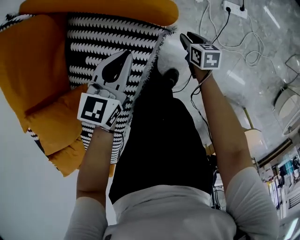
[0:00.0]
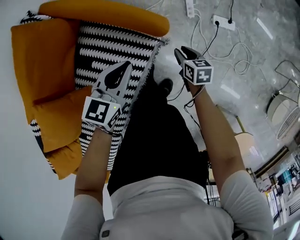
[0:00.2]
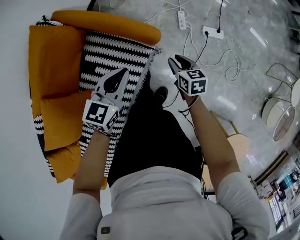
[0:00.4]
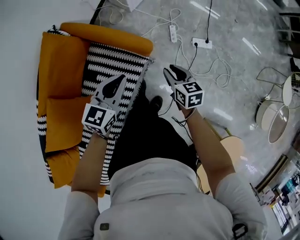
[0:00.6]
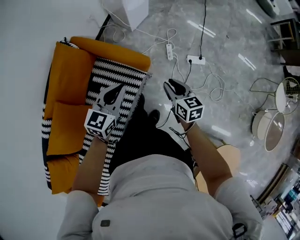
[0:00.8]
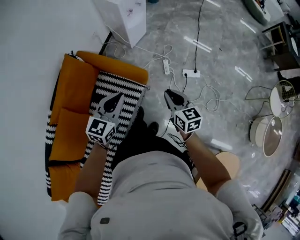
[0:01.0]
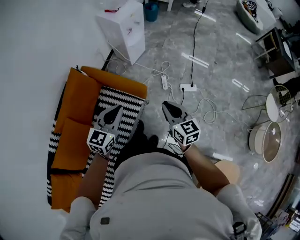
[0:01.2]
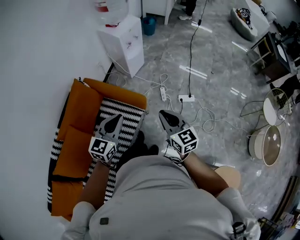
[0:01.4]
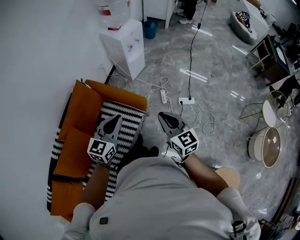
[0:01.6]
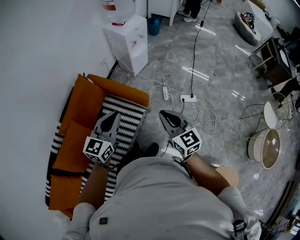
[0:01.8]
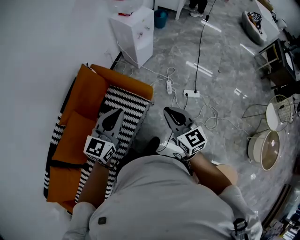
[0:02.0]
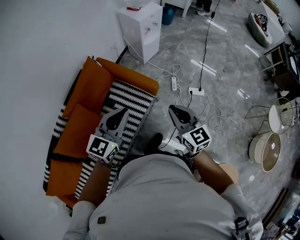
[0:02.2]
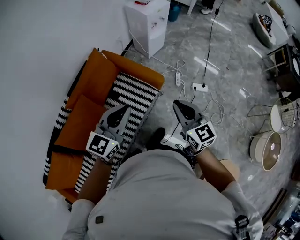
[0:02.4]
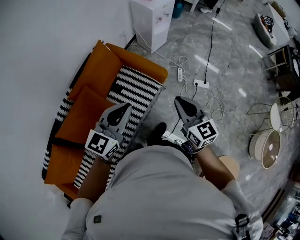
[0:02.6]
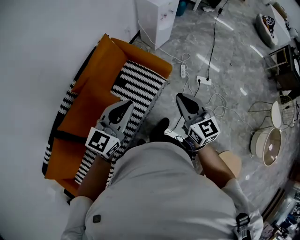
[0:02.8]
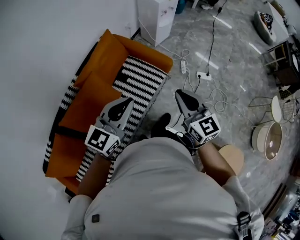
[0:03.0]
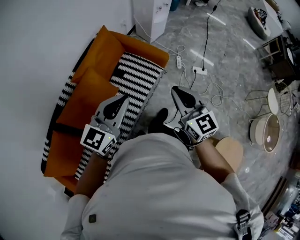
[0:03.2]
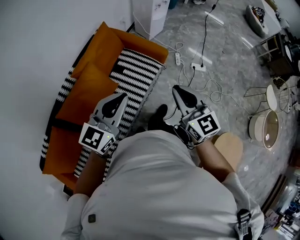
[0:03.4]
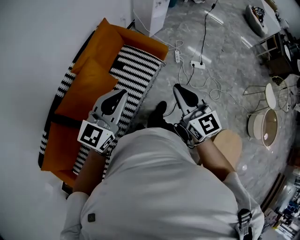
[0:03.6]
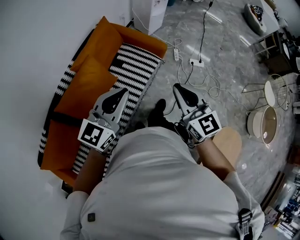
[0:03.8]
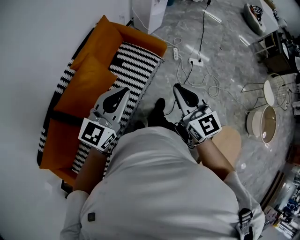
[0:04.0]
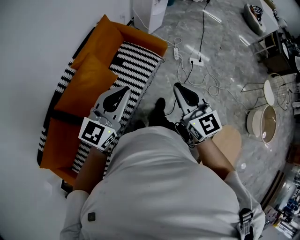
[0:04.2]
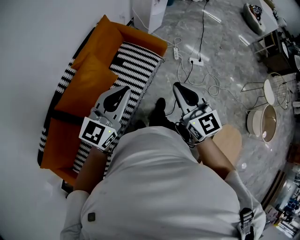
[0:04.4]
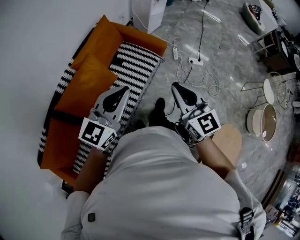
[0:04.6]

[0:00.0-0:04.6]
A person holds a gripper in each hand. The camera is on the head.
0:00.0 to 0:01.6: The grippers both shift upward by some 60 cm. The left gripper turns by some 30 degrees. Meanwhile the right gripper tilts its fingers some 40 degrees upward, and closes its fingers.
0:01.6 to 0:03.0: The grippers both shift backward and to the left by roughly 25 cm.
0:03.0 to 0:04.6: Both grippers travel together backward, about 15 cm.

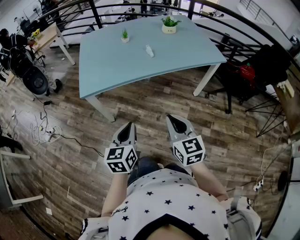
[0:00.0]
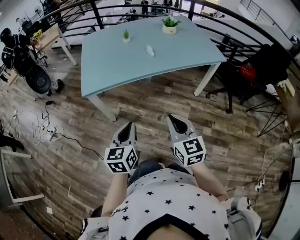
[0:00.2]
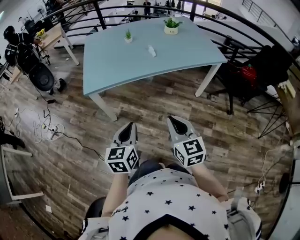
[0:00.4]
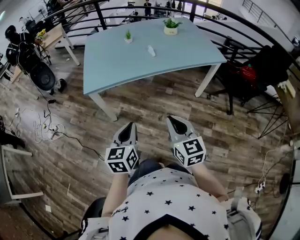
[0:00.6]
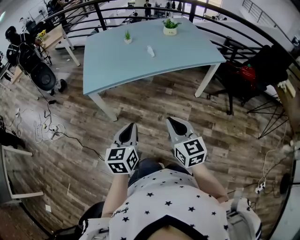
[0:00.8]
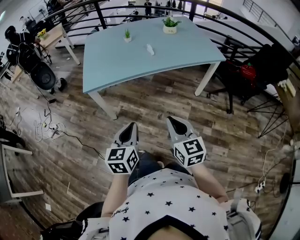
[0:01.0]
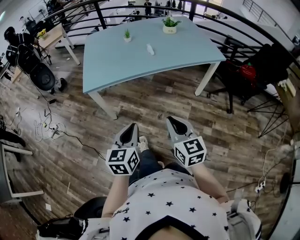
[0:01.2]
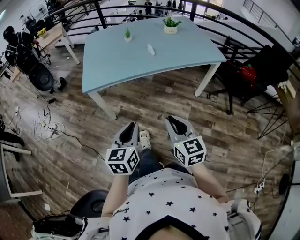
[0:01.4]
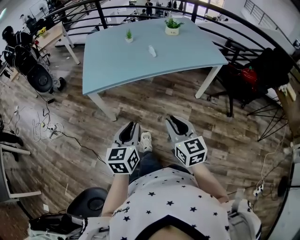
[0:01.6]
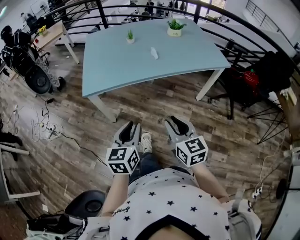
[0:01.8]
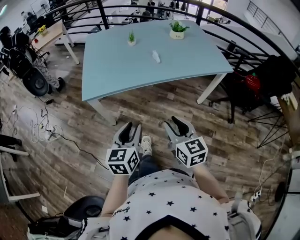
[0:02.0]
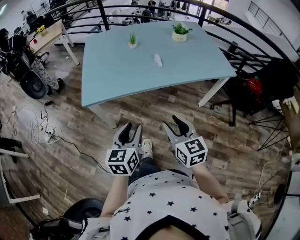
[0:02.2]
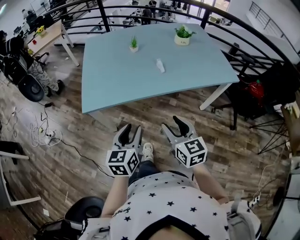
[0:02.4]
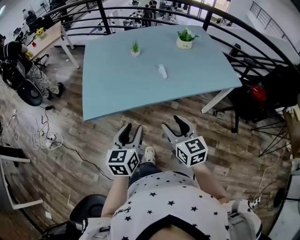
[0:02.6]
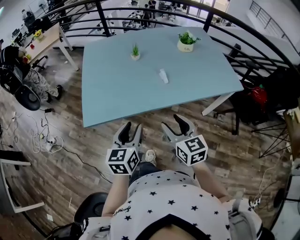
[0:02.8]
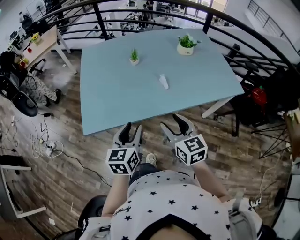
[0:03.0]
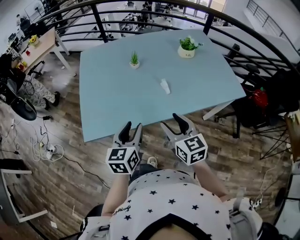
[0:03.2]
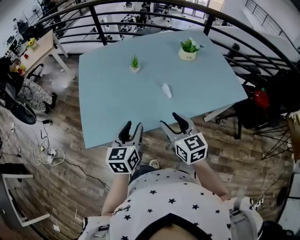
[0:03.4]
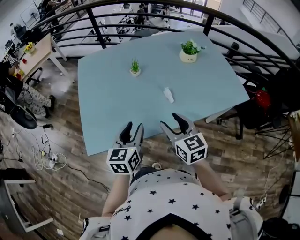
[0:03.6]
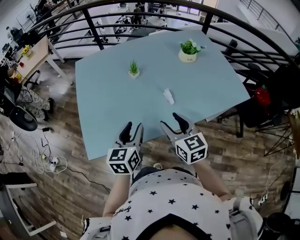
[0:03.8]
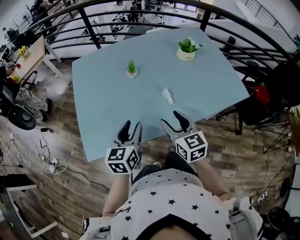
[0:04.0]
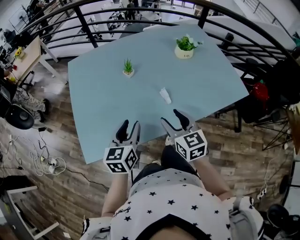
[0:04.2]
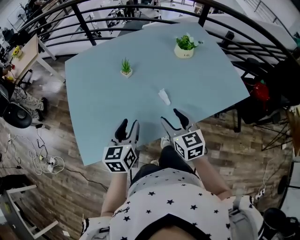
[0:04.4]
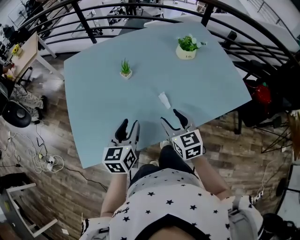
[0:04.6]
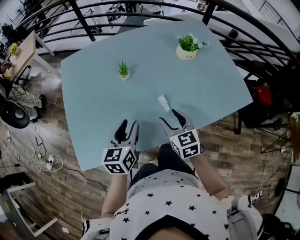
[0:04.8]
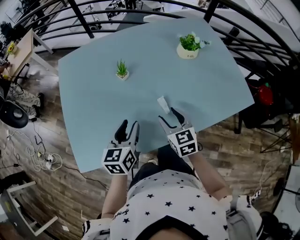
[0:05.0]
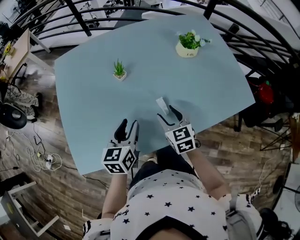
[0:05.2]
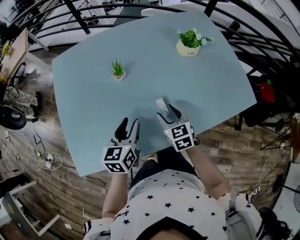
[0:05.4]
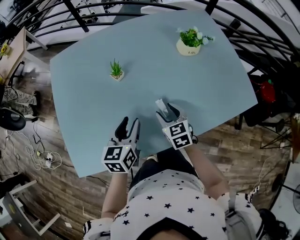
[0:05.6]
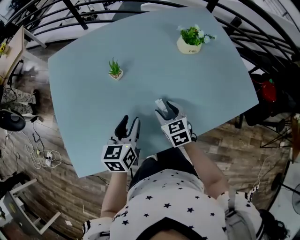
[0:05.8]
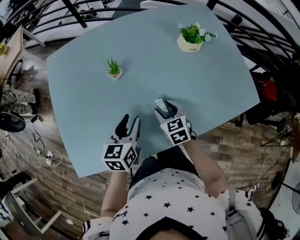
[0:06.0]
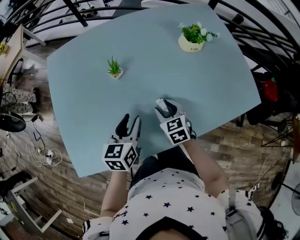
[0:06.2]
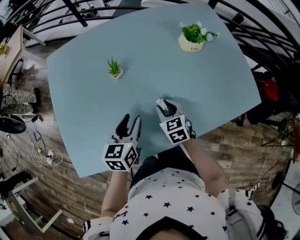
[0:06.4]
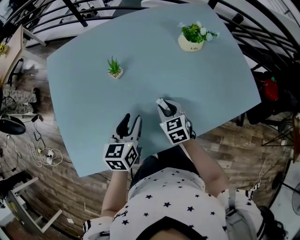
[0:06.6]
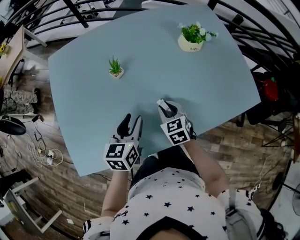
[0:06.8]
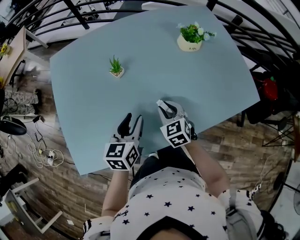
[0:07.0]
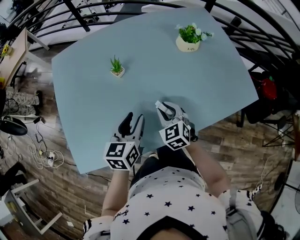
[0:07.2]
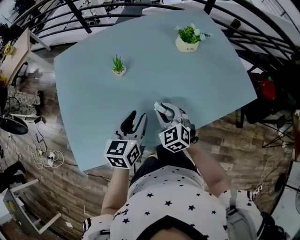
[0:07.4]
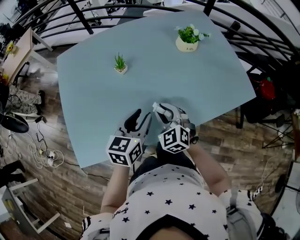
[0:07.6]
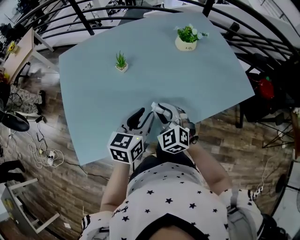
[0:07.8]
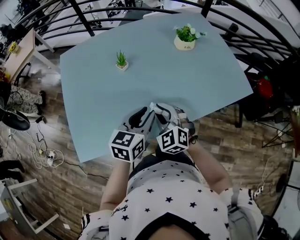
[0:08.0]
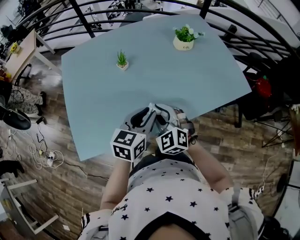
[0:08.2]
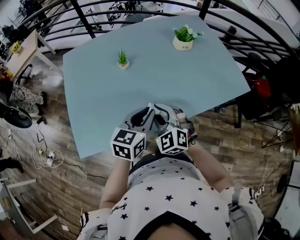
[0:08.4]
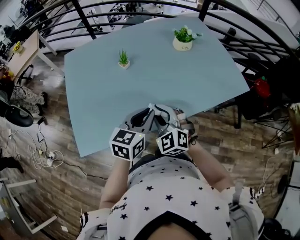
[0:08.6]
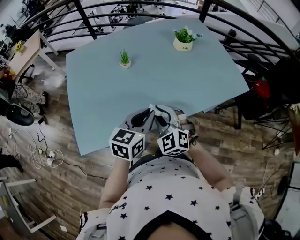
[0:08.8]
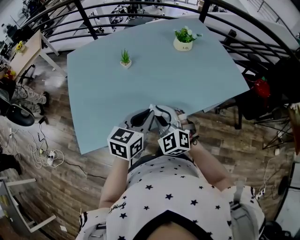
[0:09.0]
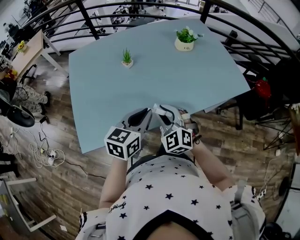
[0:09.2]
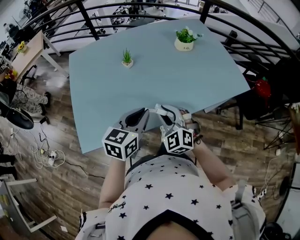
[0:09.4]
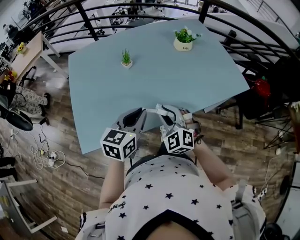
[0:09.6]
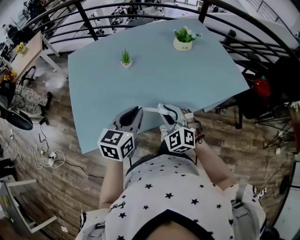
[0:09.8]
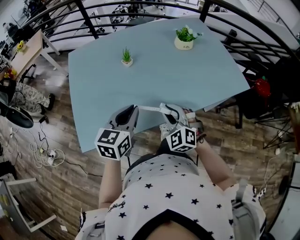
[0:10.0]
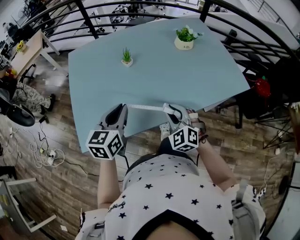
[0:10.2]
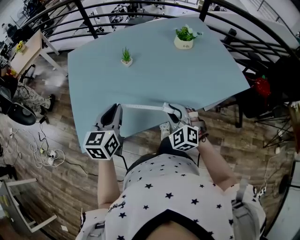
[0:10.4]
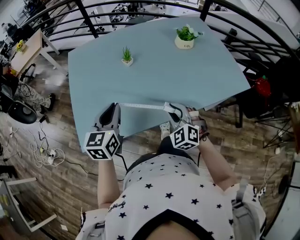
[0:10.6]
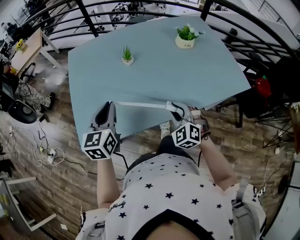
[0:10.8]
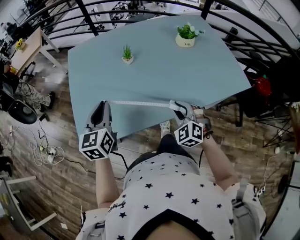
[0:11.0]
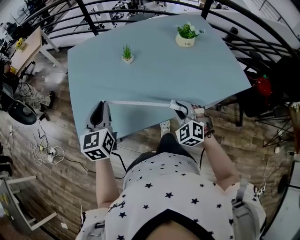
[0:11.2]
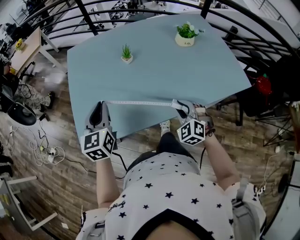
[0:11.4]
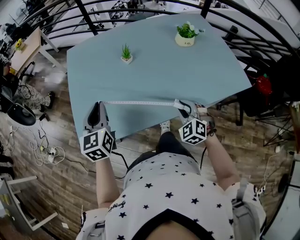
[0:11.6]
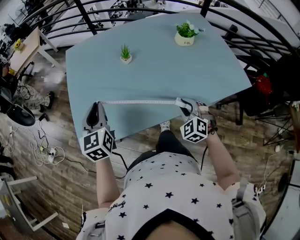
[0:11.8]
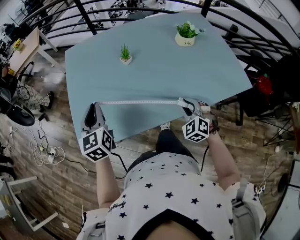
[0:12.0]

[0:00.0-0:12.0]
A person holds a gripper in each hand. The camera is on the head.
0:01.6 to 0:03.0: The two grippers go about 30 cm forward. The right gripper opens its fingers.
0:03.0 to 0:04.4: The grippers both shift forward by roughly 15 cm.
0:04.4 to 0:06.0: The right gripper heads downward and forward, covering approximately 20 cm. The left gripper travels forward and downward by approximately 15 cm.
0:06.0 to 0:07.6: The right gripper is displaced backward and upward by some 10 cm, swivels some 30 degrees, and closes its fingers. Meanwhile the left gripper travels upward and backward by about 5 cm.
0:07.6 to 0:09.0: The left gripper moves backward, about 10 cm, and closes up, while the right gripper goes about 10 cm backward and upward.
0:09.0 to 0:10.4: The right gripper moves approximately 5 cm, while the left gripper moves to the left, some 15 cm, and rotates about 20 degrees.
0:10.4 to 0:12.0: The left gripper moves to the left, roughly 10 cm, and swivels about 30 degrees, while the right gripper shifts approximately 10 cm to the right.

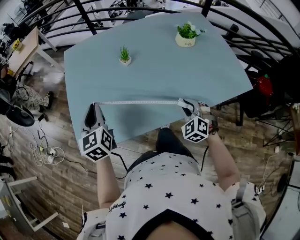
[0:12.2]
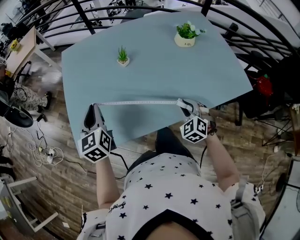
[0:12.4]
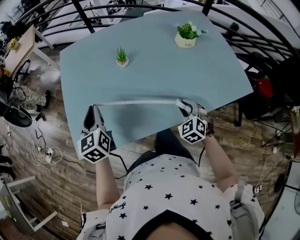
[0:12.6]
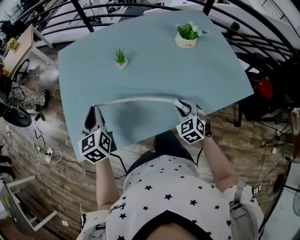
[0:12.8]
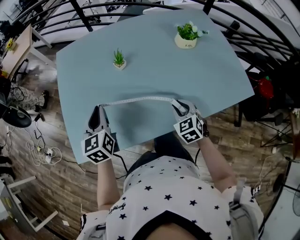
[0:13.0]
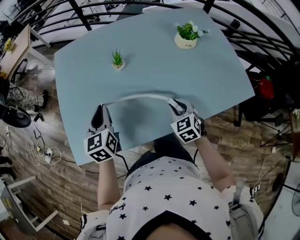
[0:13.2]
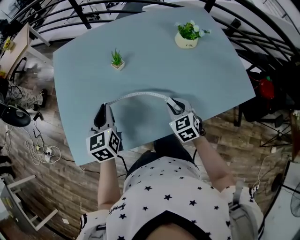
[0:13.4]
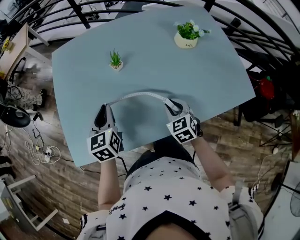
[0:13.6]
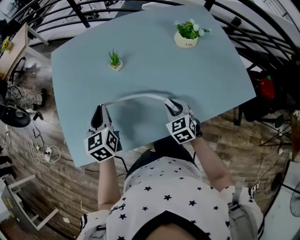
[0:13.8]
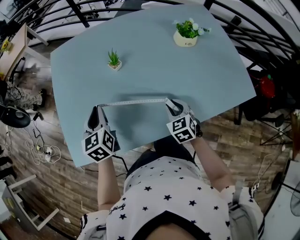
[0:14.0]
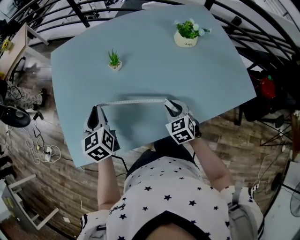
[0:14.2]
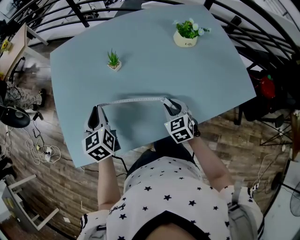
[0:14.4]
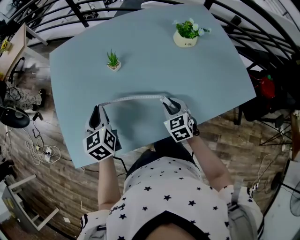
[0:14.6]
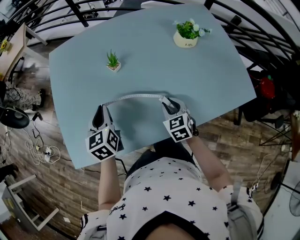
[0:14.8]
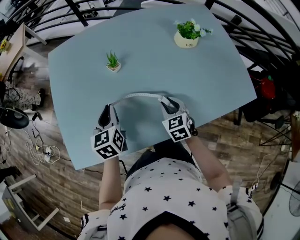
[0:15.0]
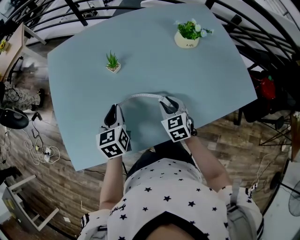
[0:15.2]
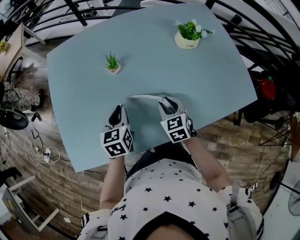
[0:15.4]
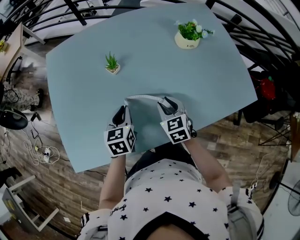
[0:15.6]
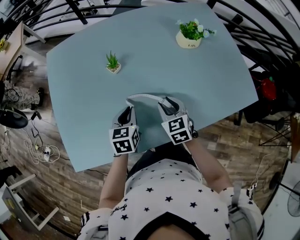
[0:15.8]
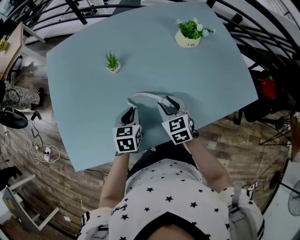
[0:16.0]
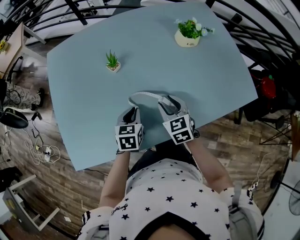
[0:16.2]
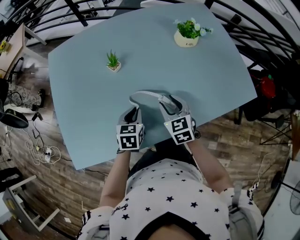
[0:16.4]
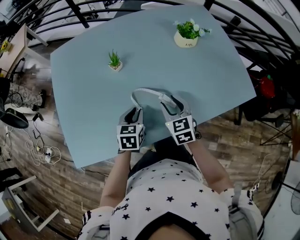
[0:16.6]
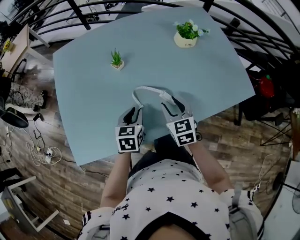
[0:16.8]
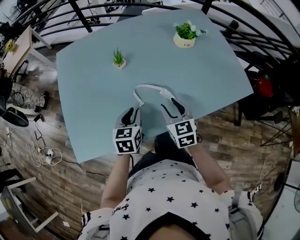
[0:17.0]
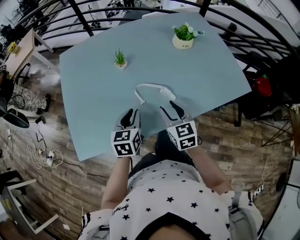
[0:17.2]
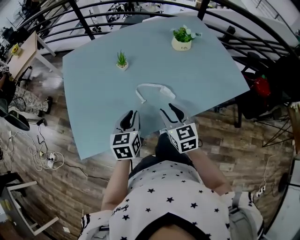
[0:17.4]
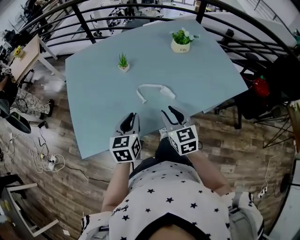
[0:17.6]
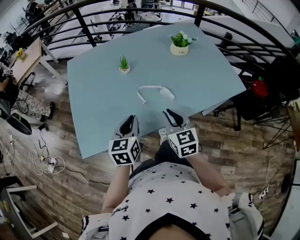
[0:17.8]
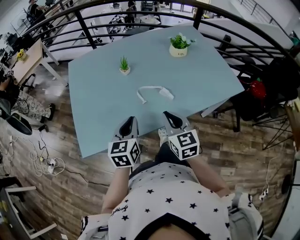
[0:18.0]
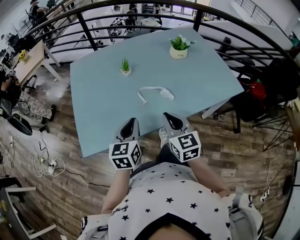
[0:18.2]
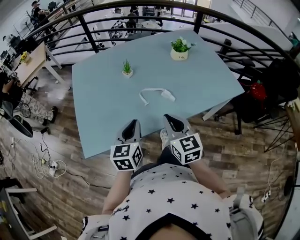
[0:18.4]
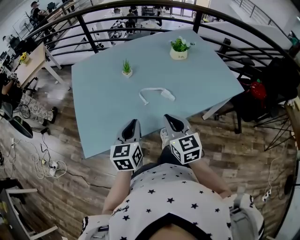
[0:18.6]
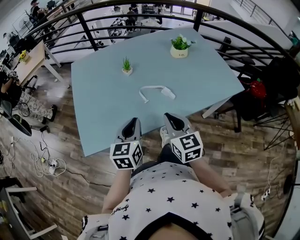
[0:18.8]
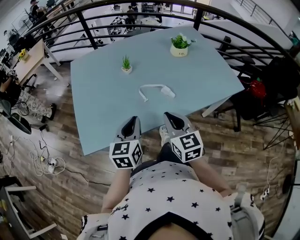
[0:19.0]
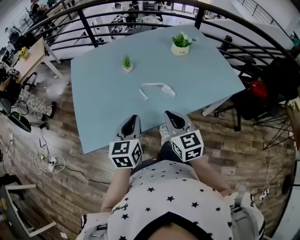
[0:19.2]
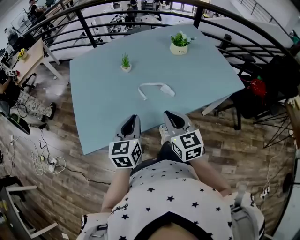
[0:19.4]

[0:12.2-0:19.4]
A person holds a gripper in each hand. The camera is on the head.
0:12.2 to 0:13.6: The left gripper heads to the right, downward and forward, covering approximately 10 cm, while the right gripper moves forward, some 10 cm, and turns by some 30 degrees.
0:13.6 to 0:15.0: The grippers stay close to where they were, moving slightly.
0:15.0 to 0:16.6: The left gripper is displaced to the right and downward by about 15 cm, and swivels roughly 20 degrees.
0:16.6 to 0:18.0: The left gripper is displaced upward and backward by approximately 20 cm, and rotates some 20 degrees, while the right gripper heads backward and upward, covering about 20 cm, and closes up.
0:18.0 to 0:19.4: The grippers make only small movements.
